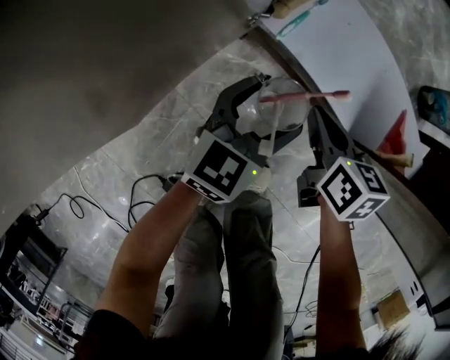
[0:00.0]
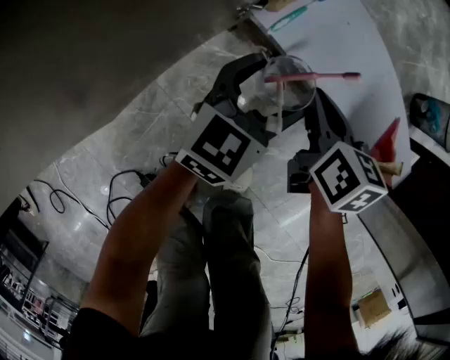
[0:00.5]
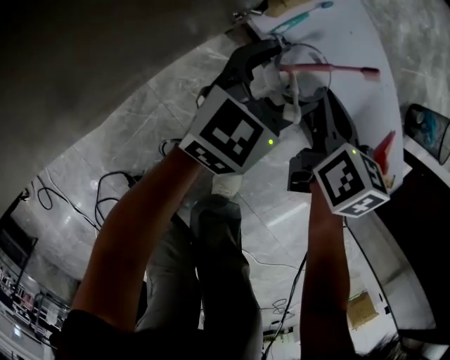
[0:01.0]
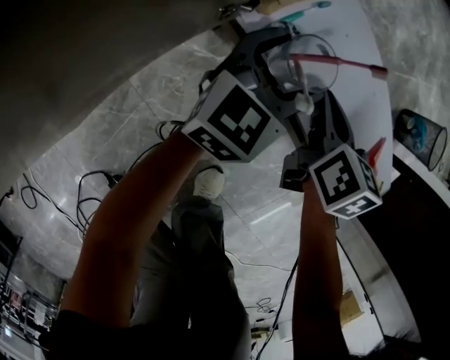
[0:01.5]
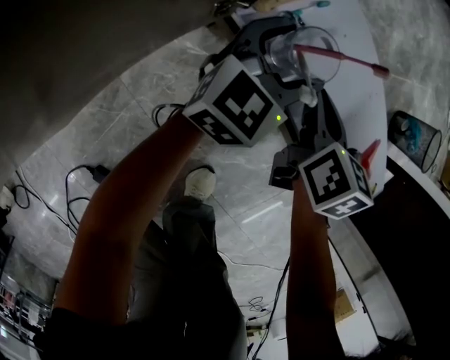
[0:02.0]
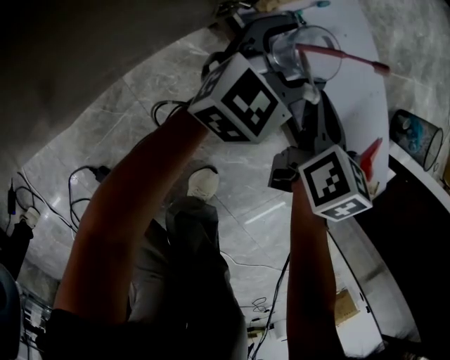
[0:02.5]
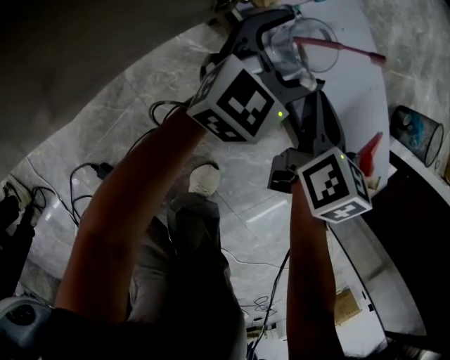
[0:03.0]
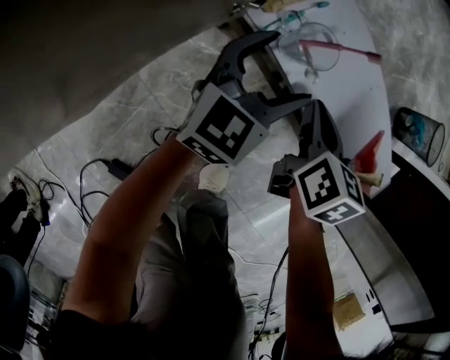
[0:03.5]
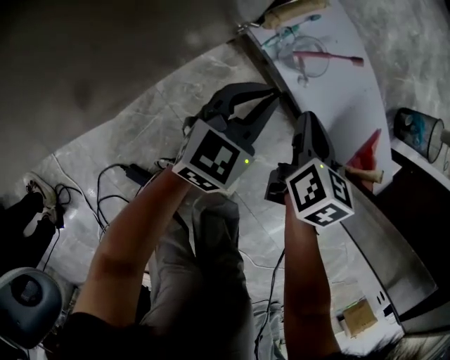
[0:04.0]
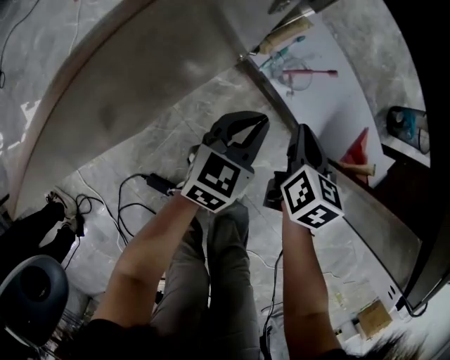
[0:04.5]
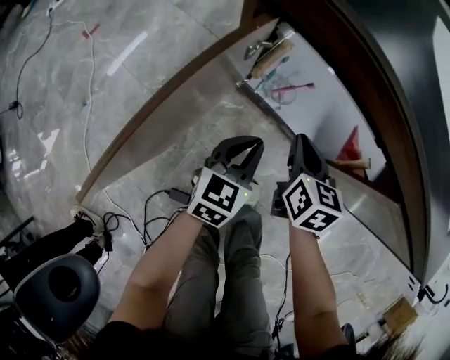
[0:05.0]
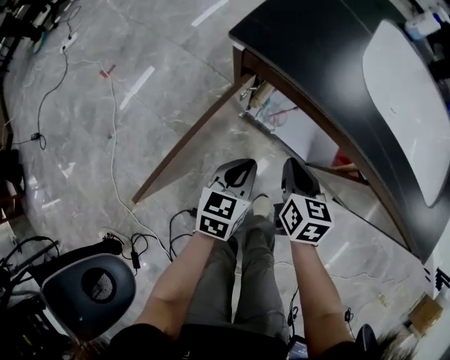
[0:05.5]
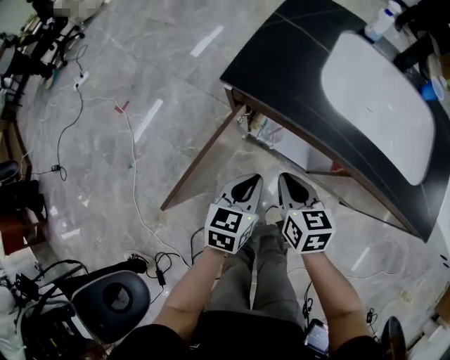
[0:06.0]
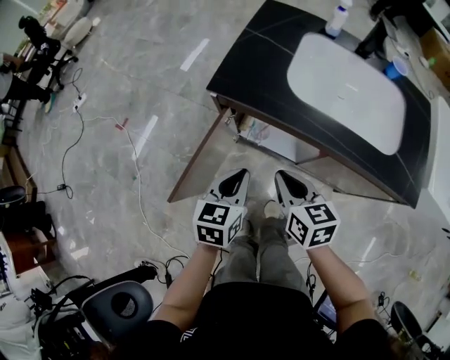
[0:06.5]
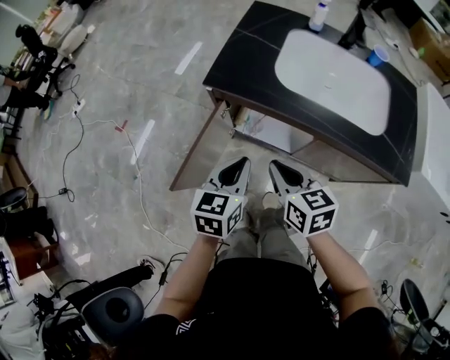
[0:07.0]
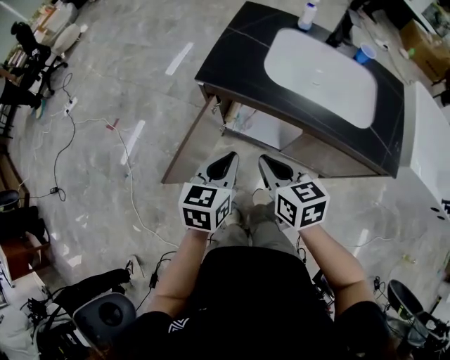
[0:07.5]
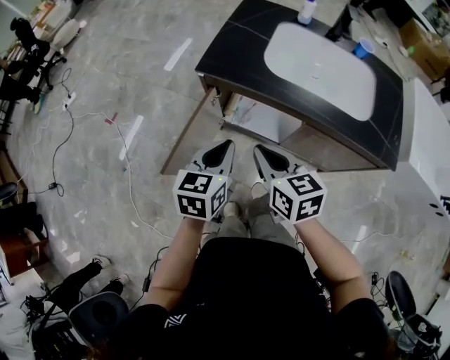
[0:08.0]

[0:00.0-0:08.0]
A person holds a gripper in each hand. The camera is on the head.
0:00.0 to 0:02.0: Both grippers move forward, some 15 cm.
0:02.0 to 0:04.0: The left gripper travels backward by some 10 cm, and closes. The right gripper shifts roughly 5 cm backward.
0:04.0 to 0:06.0: The grippers both shift upward by roughly 35 cm.
0:06.0 to 0:08.0: The right gripper moves upward and backward, some 20 cm, while the left gripper shifts some 15 cm upward.

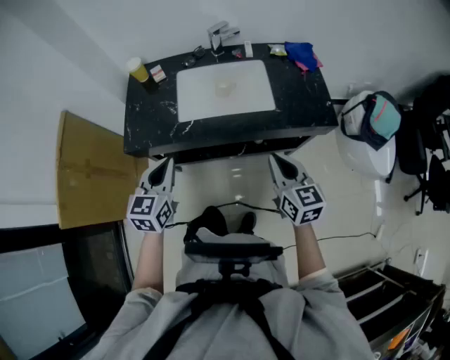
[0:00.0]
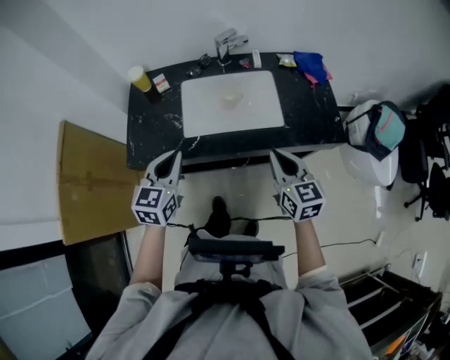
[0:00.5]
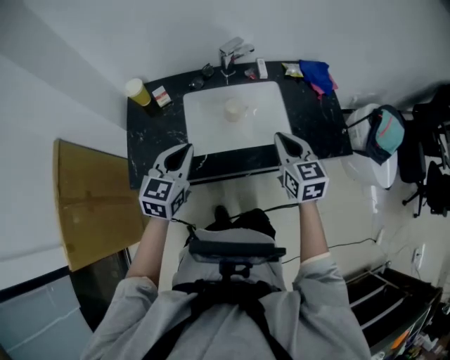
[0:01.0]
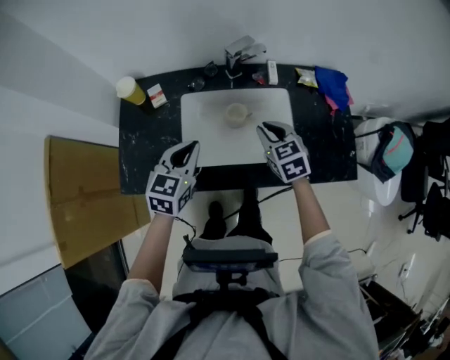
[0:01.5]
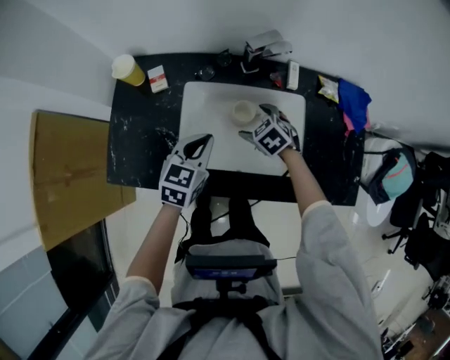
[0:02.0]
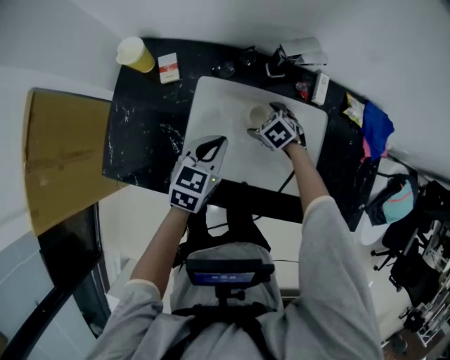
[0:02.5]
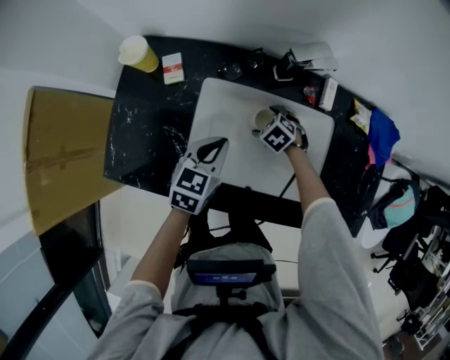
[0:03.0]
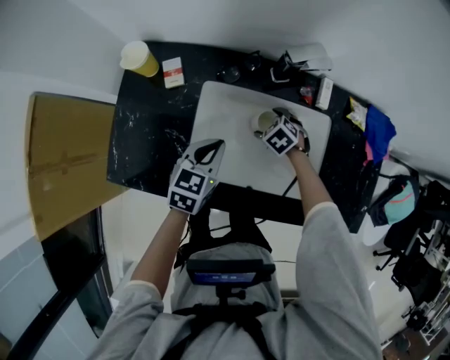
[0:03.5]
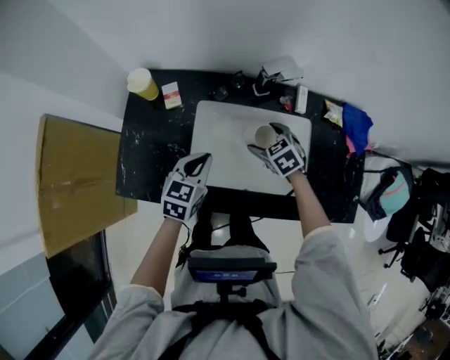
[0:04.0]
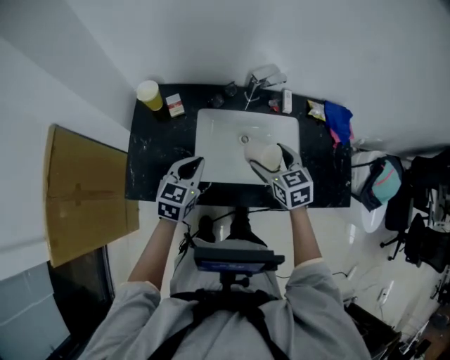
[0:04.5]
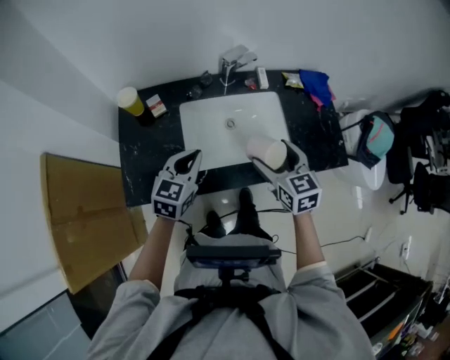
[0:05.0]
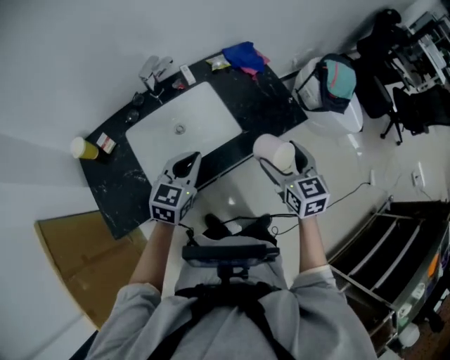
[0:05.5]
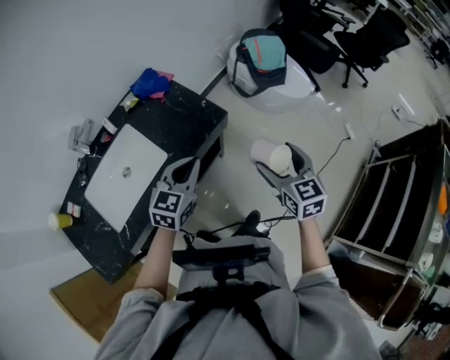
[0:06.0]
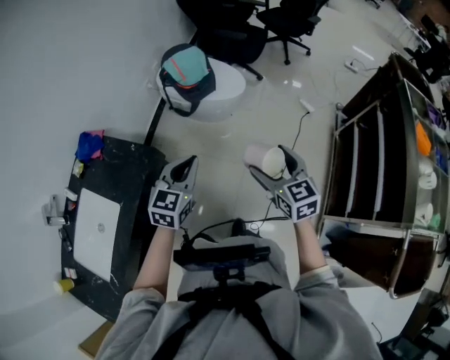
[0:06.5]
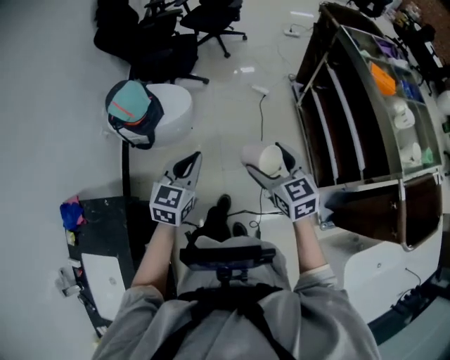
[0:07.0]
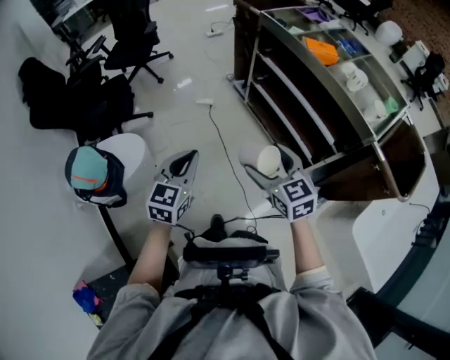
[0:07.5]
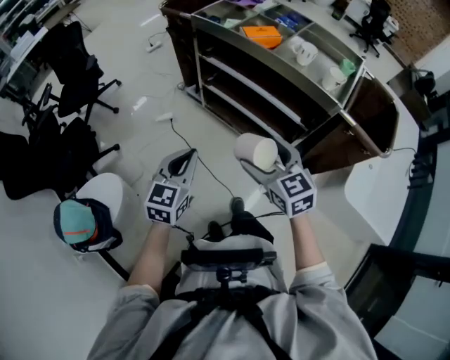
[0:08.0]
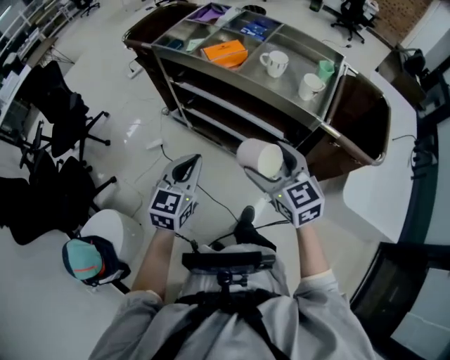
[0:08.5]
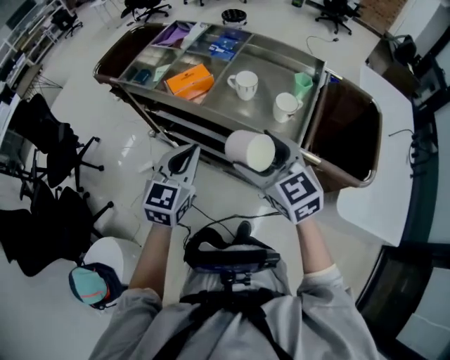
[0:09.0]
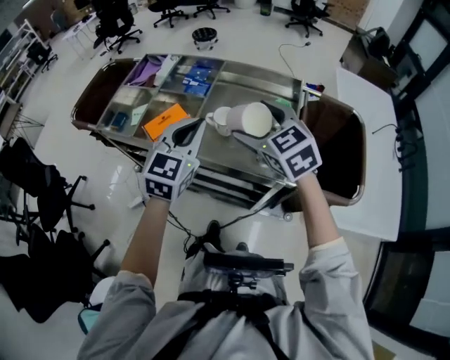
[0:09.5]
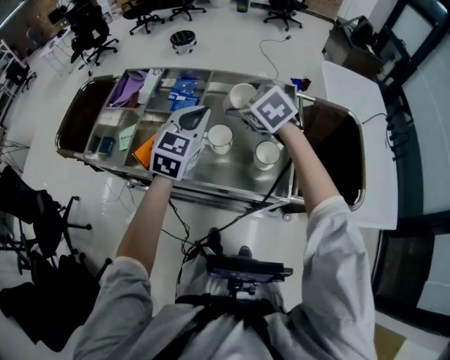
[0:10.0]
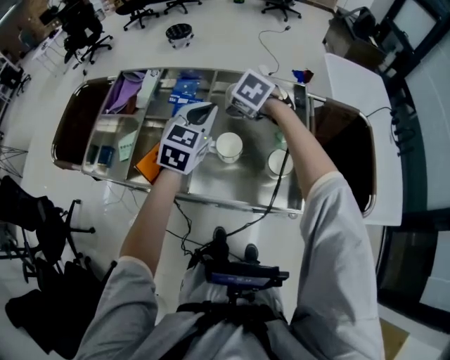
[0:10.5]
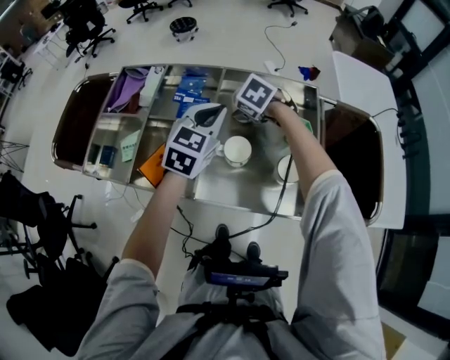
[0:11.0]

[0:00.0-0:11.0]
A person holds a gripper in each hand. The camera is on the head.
0:00.0 to 0:02.0: Both grippers travel together forward and downward, approximately 40 cm. The right gripper tilts its fingers roughly 40 degrees downward, and opens its fingers.
0:02.0 to 0:03.5: The right gripper goes about 10 cm downward, while the left gripper shifts some 5 cm downward.
0:03.5 to 0:05.5: The left gripper shifts by some 25 cm, and rotates approximately 40 degrees, while the right gripper shifts by about 50 cm, and points its fingers roughly 40 degrees further upward.
0:05.5 to 0:07.5: The pair of grippers is taken about 80 cm. The right gripper turns by about 80 degrees; the left gripper turns by about 90 degrees.
0:07.5 to 0:09.0: The right gripper changes place by roughly 40 cm, and changes its angle by some 20 degrees. The left gripper moves roughly 50 cm, and swivels some 30 degrees.
0:09.0 to 0:11.0: Both grippers travel together forward, roughly 40 cm. The right gripper tilts its fingers approximately 40 degrees downward. Meanwhile the left gripper turns by about 20 degrees.

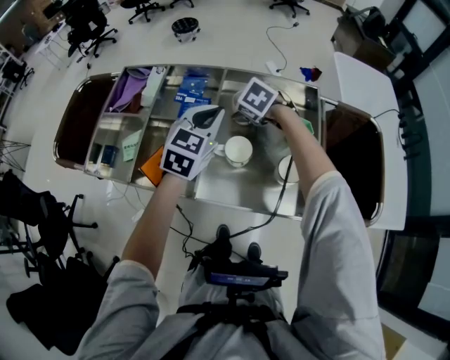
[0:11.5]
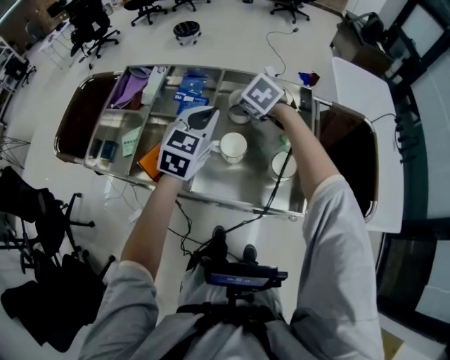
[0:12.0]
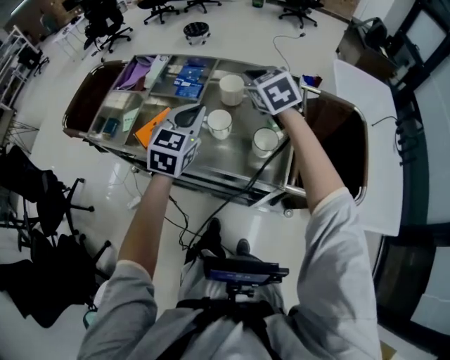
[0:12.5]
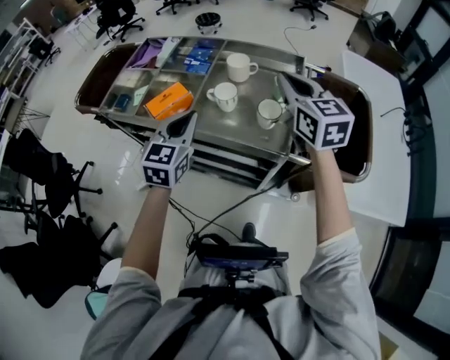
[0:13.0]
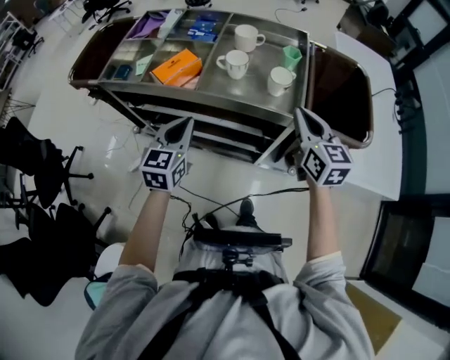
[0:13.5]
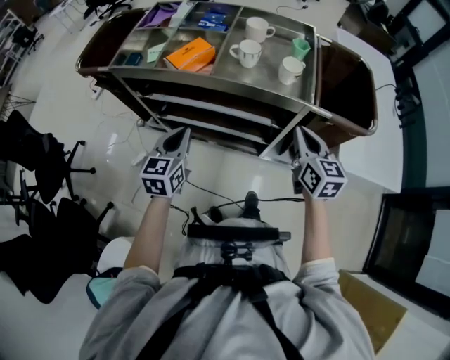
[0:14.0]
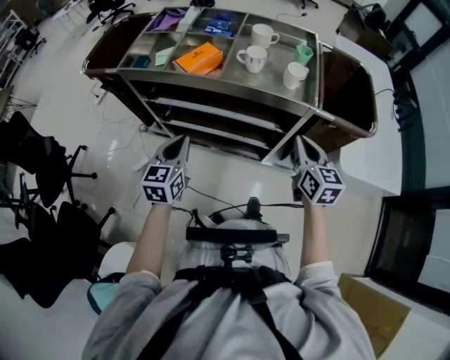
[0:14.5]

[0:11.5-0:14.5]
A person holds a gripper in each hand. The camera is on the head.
0:11.5 to 0:13.0: The left gripper goes roughly 25 cm backward. Meanwhile the right gripper heads backward, upward and to the right, covering some 35 cm, angles its fingers upward, by about 50 degrees, and closes its fingers.
0:13.0 to 0:14.5: The right gripper shifts approximately 30 cm backward and downward, and turns by approximately 20 degrees. Meanwhile the left gripper travels backward, to the left and downward by roughly 25 cm.

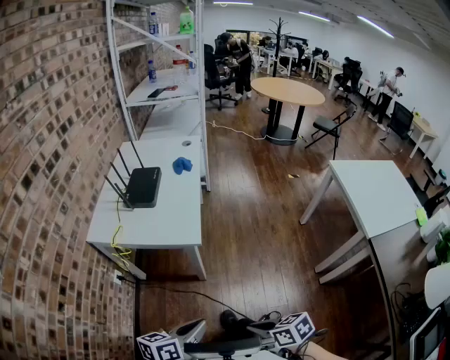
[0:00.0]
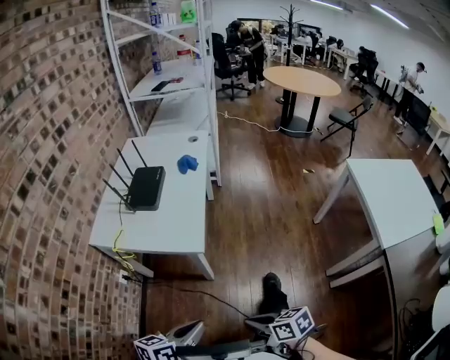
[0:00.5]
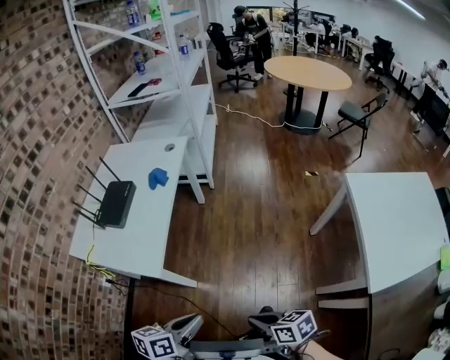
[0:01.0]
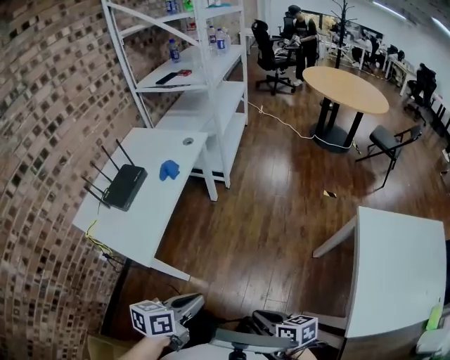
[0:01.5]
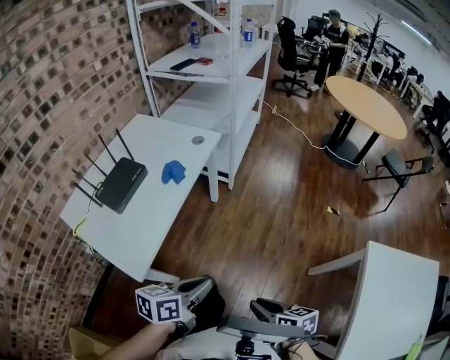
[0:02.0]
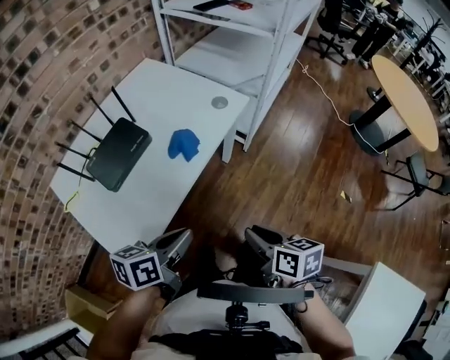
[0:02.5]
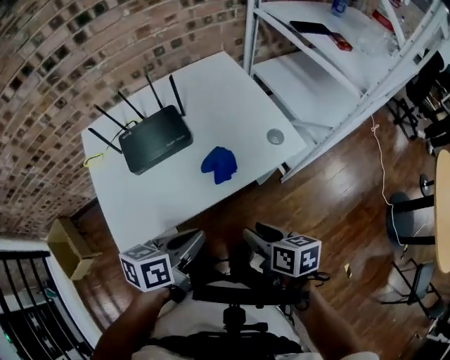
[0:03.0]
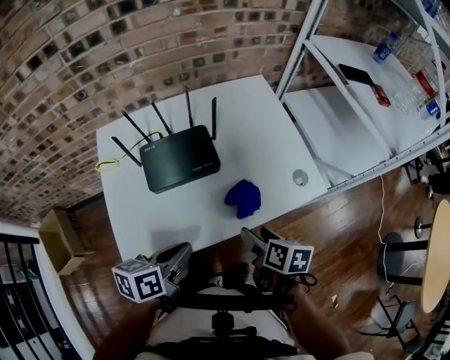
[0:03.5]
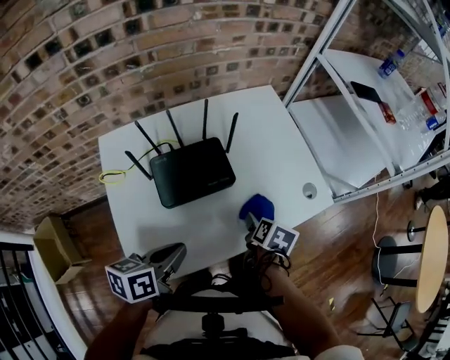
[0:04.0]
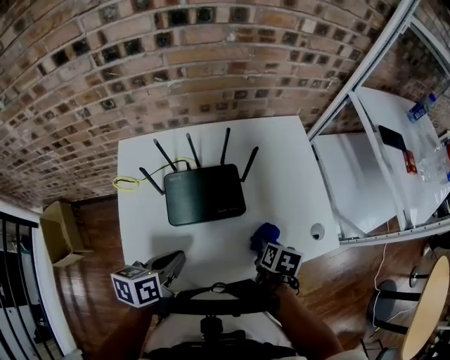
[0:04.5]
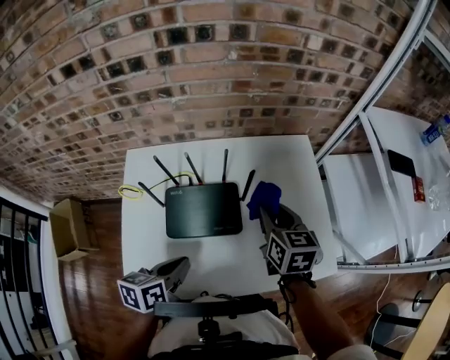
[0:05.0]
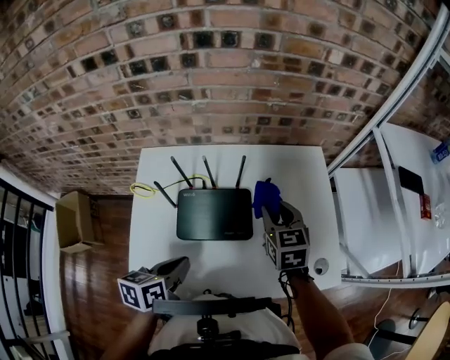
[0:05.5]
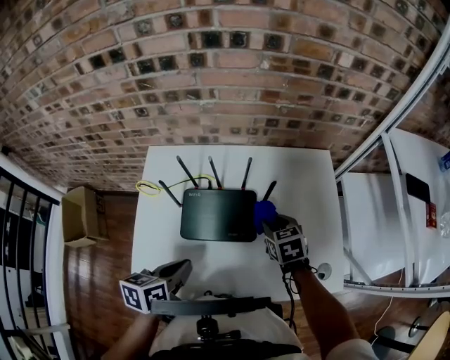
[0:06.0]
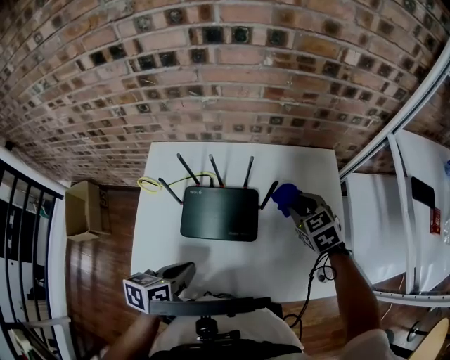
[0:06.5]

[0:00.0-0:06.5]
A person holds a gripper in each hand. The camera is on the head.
0:00.0 to 0:02.0: The two grippers travel together, forward and to the right, approximately 60 cm.
0:02.0 to 0:04.5: The pair of grippers is taken some 60 cm. The right gripper changes its angle by about 40 degrees, and opens, then closes again. Meanwhile the left gripper swivels roughly 70 degrees.
0:04.5 to 0:06.5: The right gripper travels forward and upward by some 25 cm, and twists approximately 70 degrees counterclockwise, seen from behind. The left gripper ends up some 5 cm from where it was.
